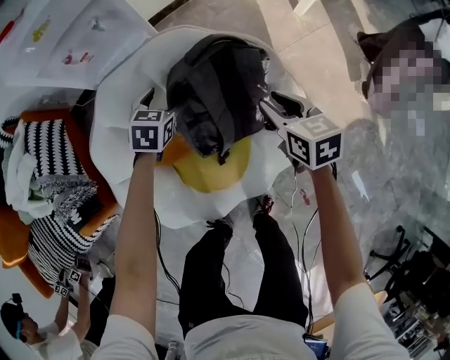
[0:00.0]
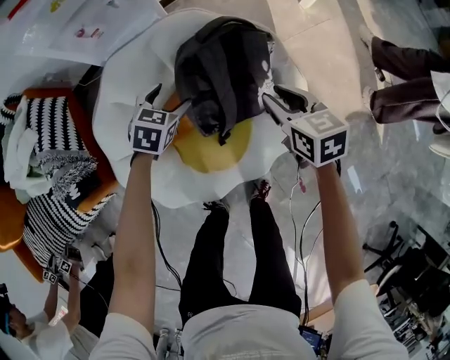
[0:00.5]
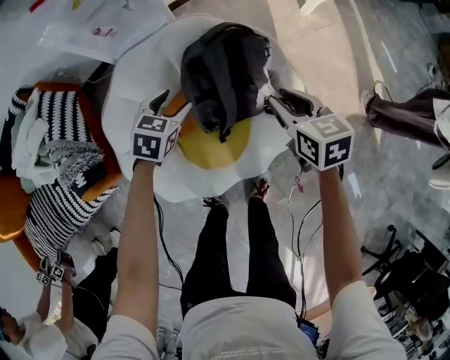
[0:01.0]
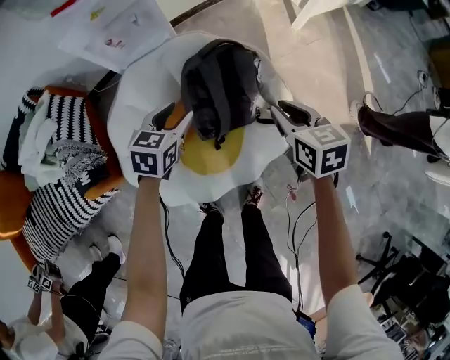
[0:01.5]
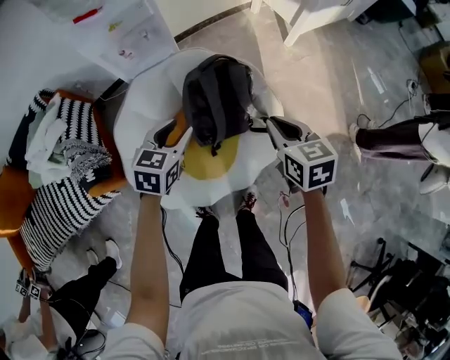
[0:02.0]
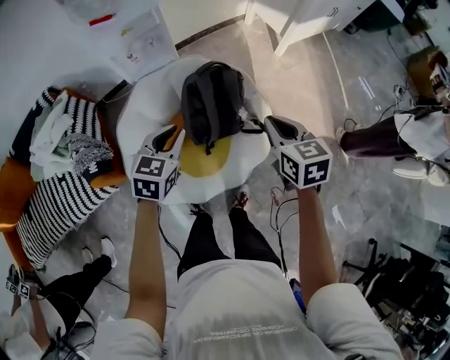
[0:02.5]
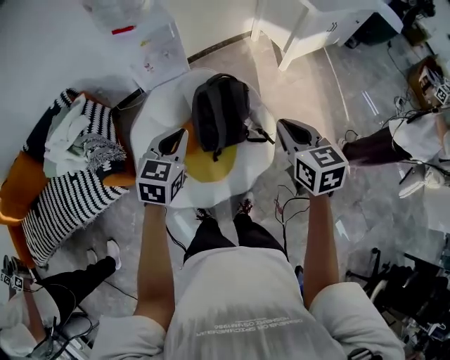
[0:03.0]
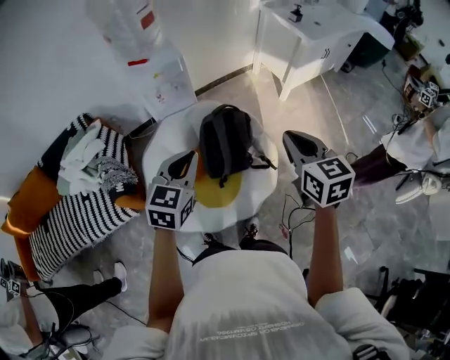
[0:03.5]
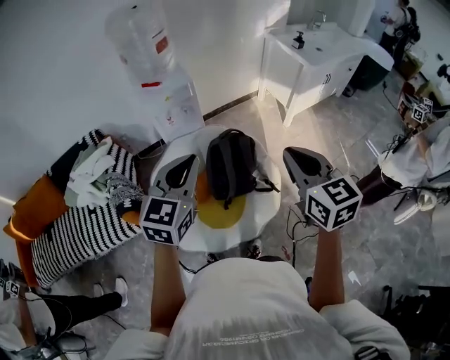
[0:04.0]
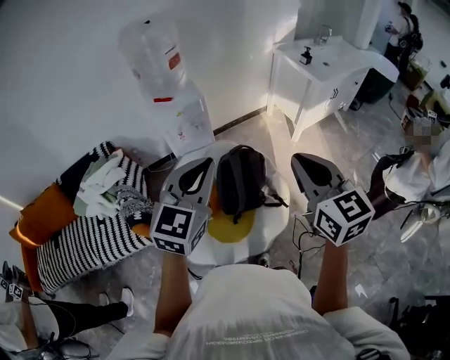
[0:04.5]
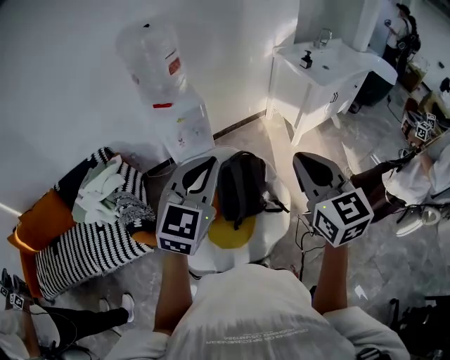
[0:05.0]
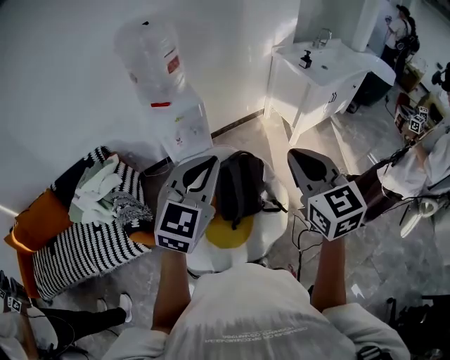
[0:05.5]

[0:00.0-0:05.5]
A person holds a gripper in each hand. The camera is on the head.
0.0 to 2.0 s: The grippers both shift upward and backward by about 30 cm. The right gripper closes. Meanwhile the left gripper closes up.
2.0 to 3.5 s: The left gripper goes roughly 25 cm upward and backward, and closes its fingers; the right gripper goes roughly 25 cm upward.
3.5 to 5.5 s: The left gripper moves upward, approximately 15 cm, and swivels roughly 20 degrees. The right gripper goes about 15 cm upward and to the left.

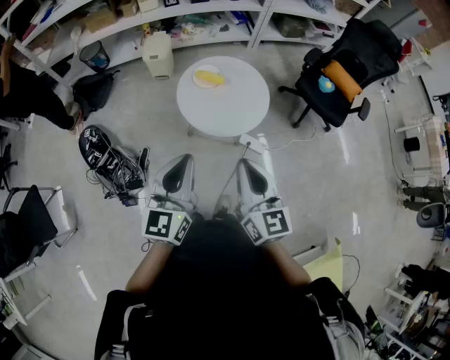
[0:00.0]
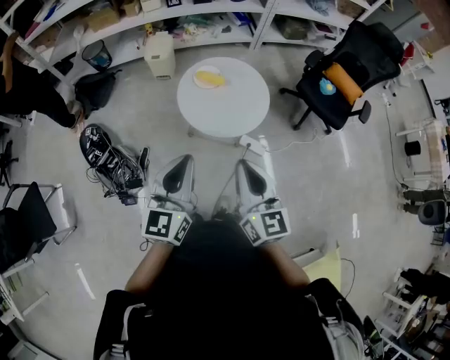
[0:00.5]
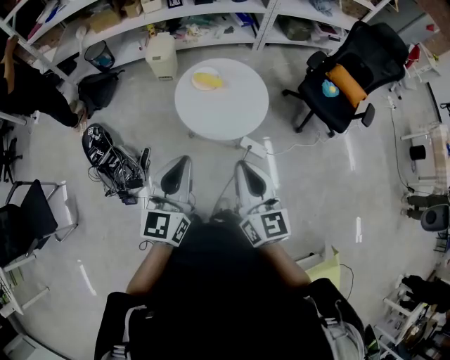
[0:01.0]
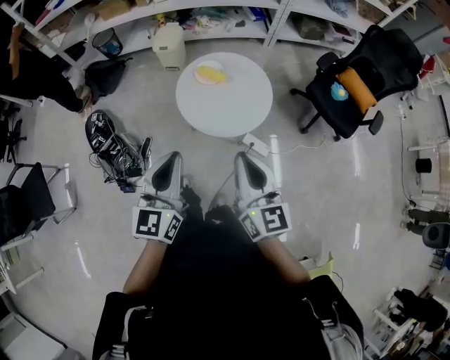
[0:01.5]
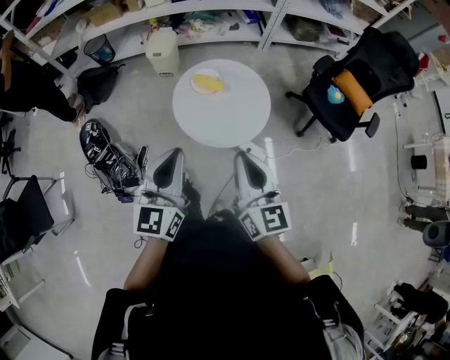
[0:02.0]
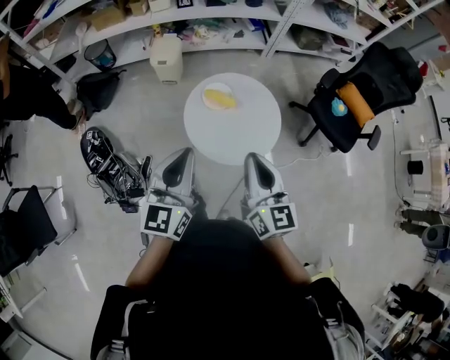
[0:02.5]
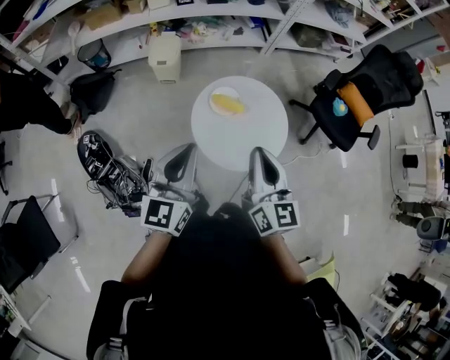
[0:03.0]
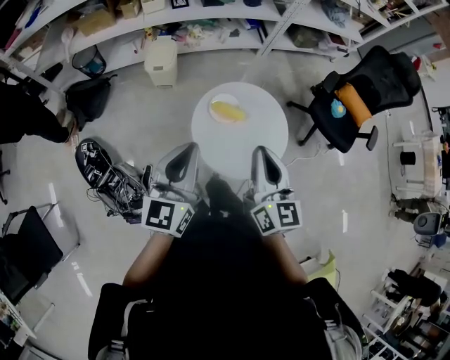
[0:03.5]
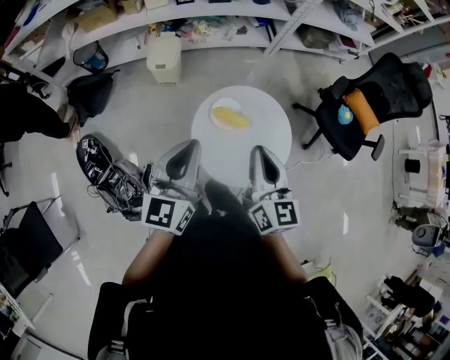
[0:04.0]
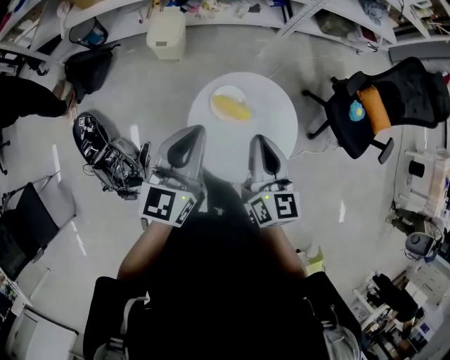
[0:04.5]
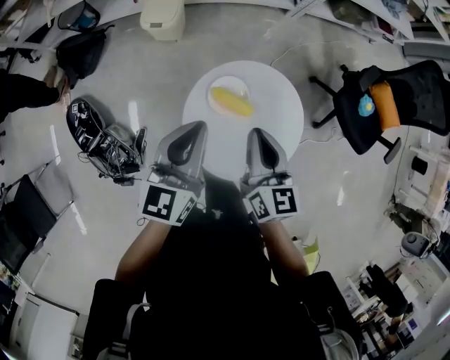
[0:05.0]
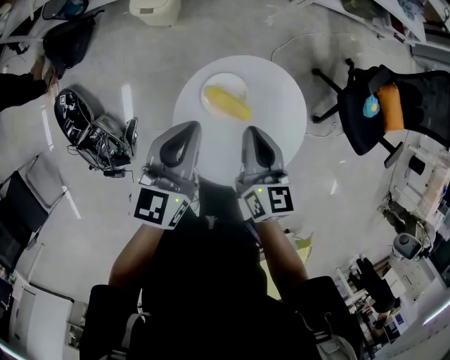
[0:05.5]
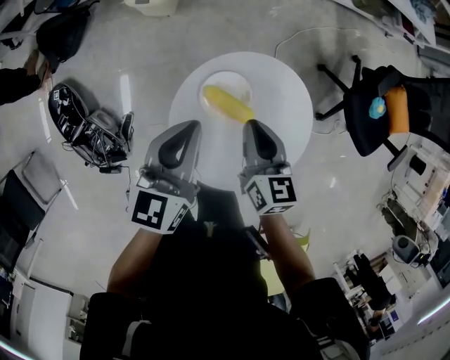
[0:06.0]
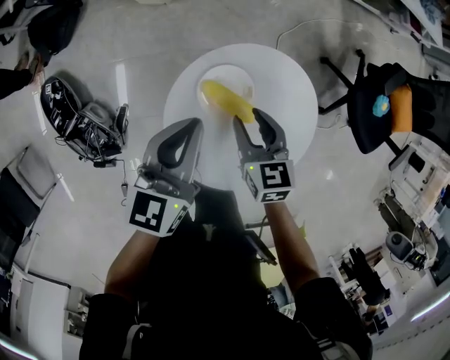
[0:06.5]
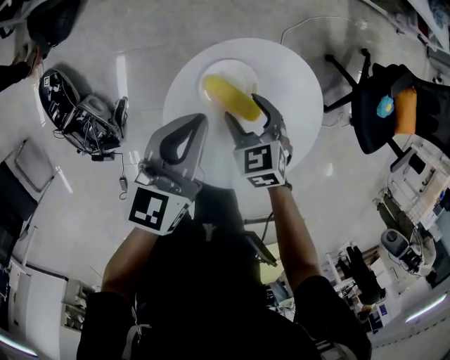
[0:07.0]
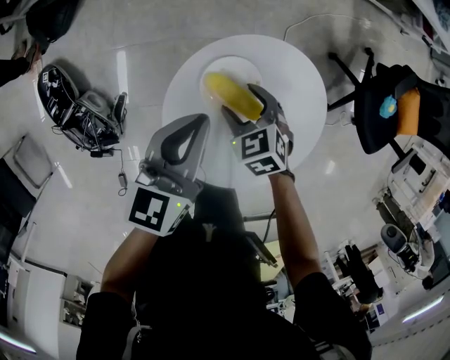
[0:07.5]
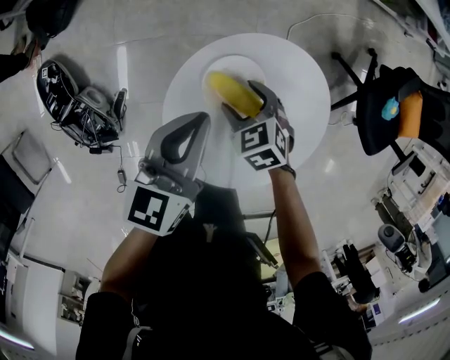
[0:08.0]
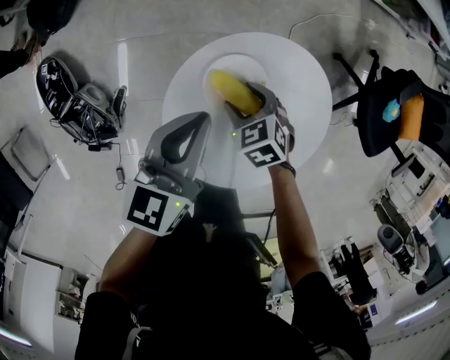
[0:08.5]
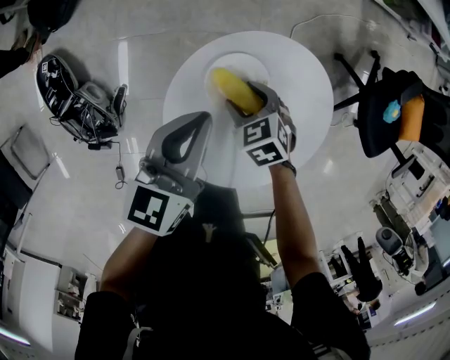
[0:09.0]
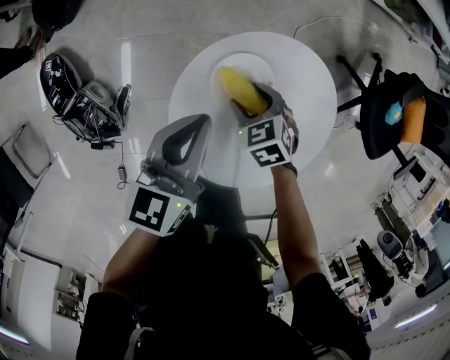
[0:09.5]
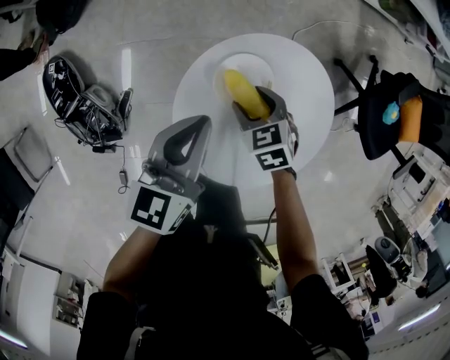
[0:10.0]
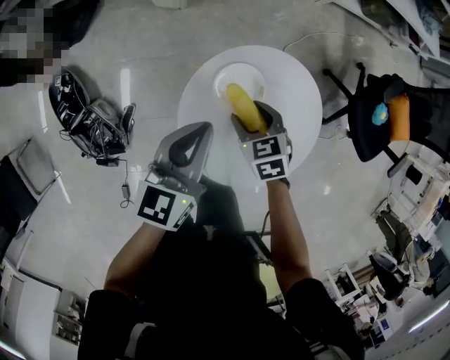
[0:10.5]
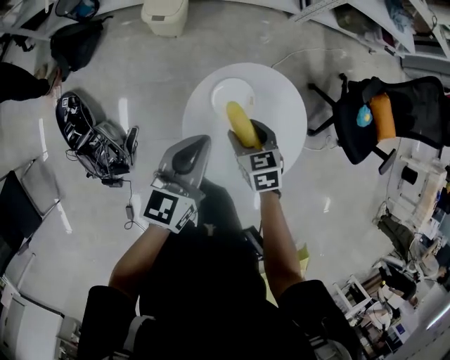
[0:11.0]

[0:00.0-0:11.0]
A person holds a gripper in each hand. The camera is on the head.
0.0 to 2.0 s: The two grippers go roughly 10 cm forward.
2.0 to 3.5 s: Both grippers travel together forward and to the left, approximately 20 cm.
3.5 to 5.5 s: The left gripper moves forward and downward, approximately 25 cm, while the right gripper goes roughly 30 cm downward and forward, and rotates approximately 20 degrees.
5.5 to 7.5 s: The left gripper goes roughly 10 cm downward; the right gripper moves downward, roughly 20 cm, points its fingers roughly 30 degrees further downward, and opens.
7.5 to 9.0 s: The grippers move only a little.
9.0 to 11.0 s: The left gripper shifts about 15 cm upward and backward, while the right gripper is displaced upward by some 15 cm, and swivels some 20 degrees.

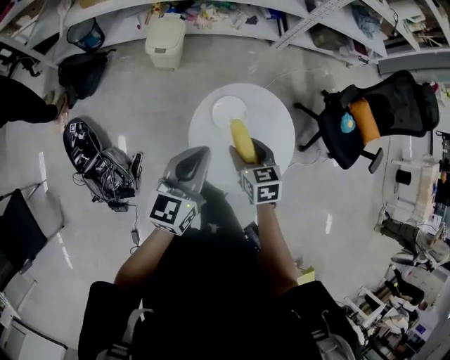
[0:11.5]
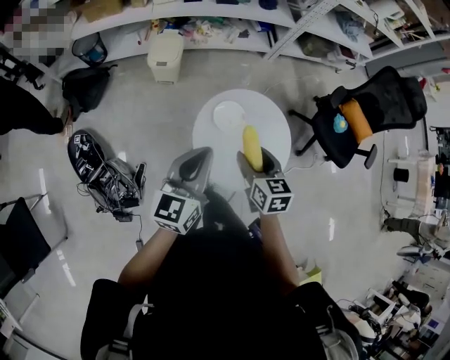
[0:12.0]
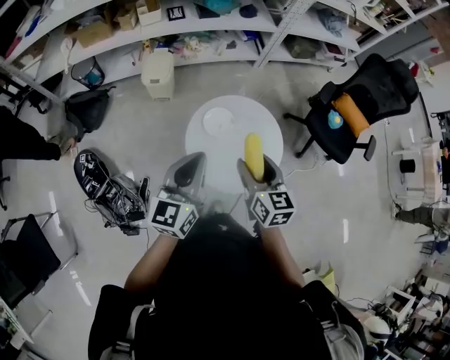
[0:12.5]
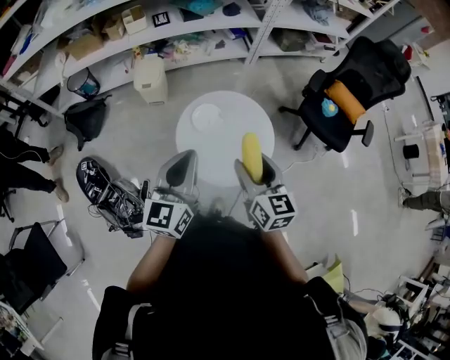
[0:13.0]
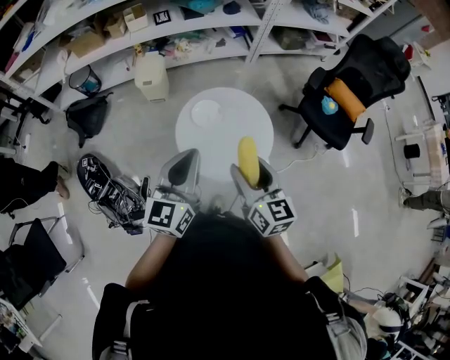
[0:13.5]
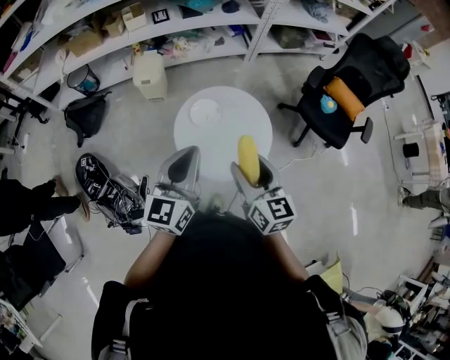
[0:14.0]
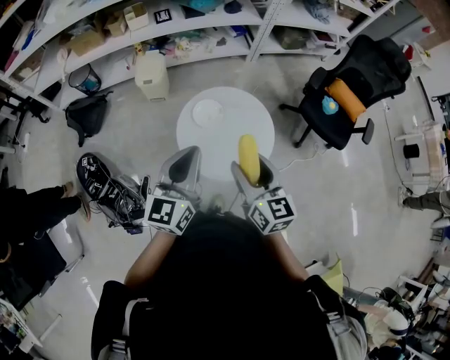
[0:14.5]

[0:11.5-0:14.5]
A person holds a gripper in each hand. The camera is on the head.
11.5 to 13.0 s: The right gripper shifts approximately 25 cm upward, backward and to the right, and changes its angle by approximately 30 degrees. The left gripper shifts some 15 cm upward, backward and to the right.
13.0 to 14.5 s: The grippers stay close to where they were, moving slightly.

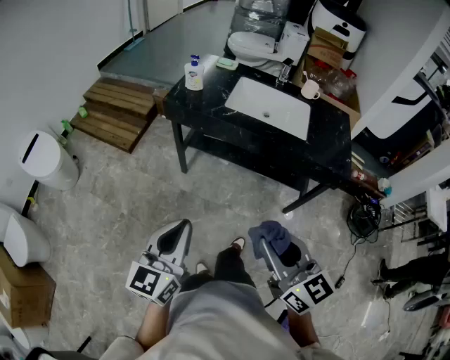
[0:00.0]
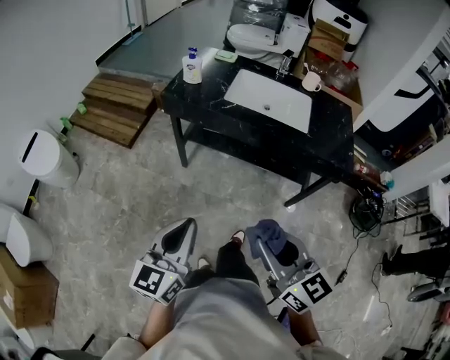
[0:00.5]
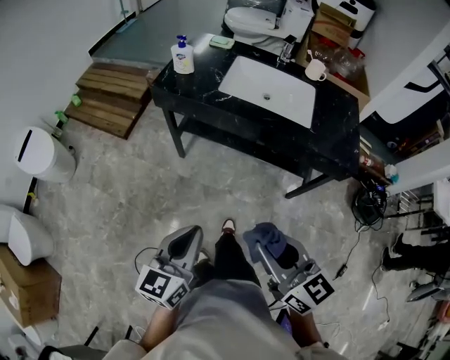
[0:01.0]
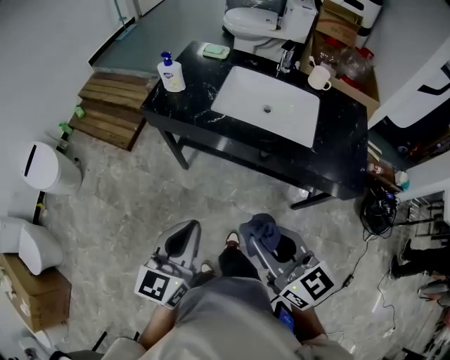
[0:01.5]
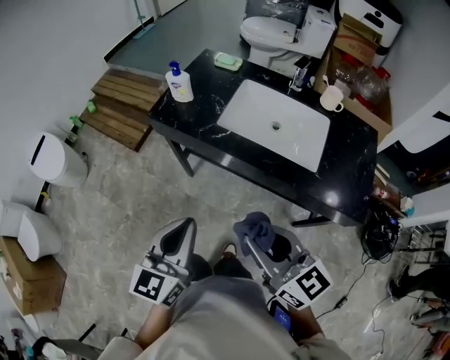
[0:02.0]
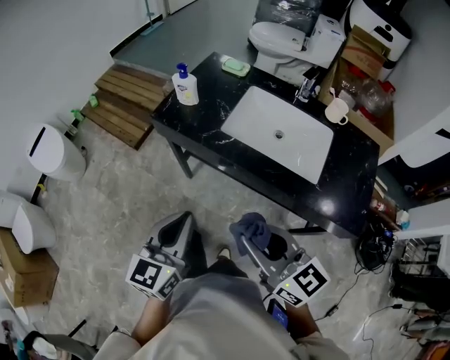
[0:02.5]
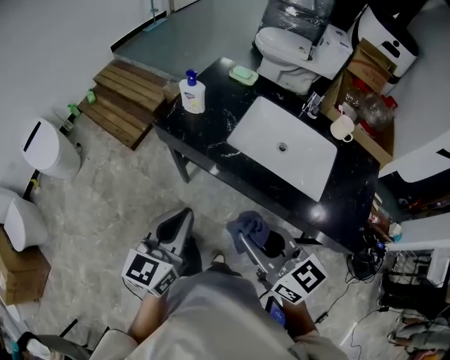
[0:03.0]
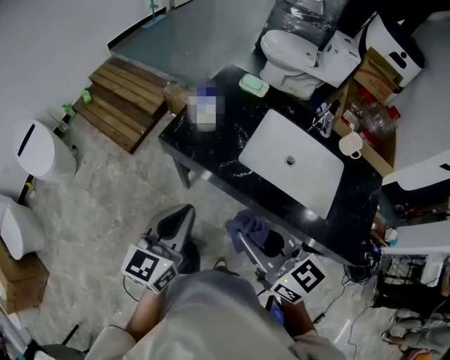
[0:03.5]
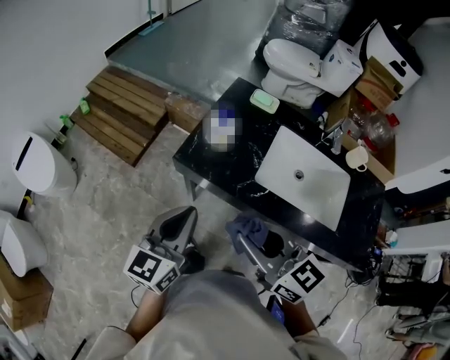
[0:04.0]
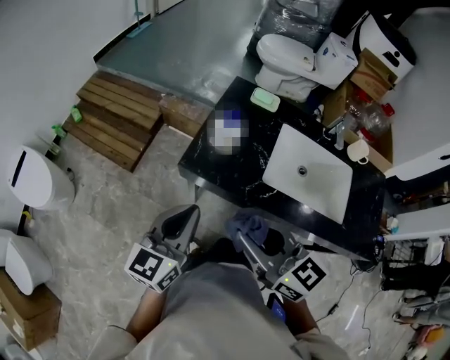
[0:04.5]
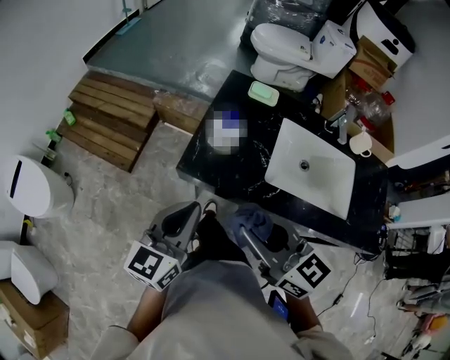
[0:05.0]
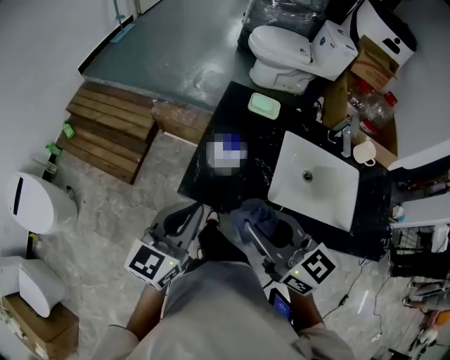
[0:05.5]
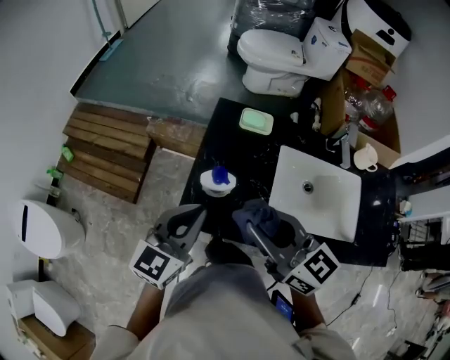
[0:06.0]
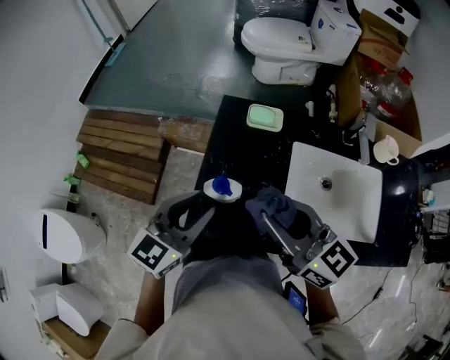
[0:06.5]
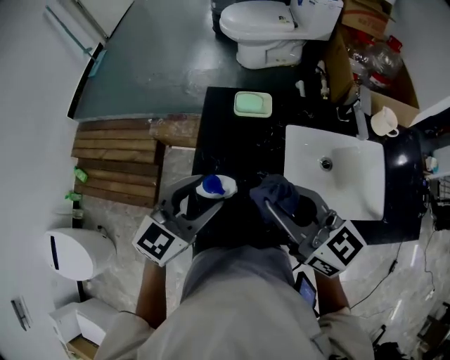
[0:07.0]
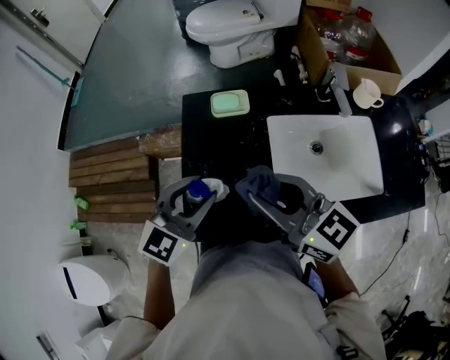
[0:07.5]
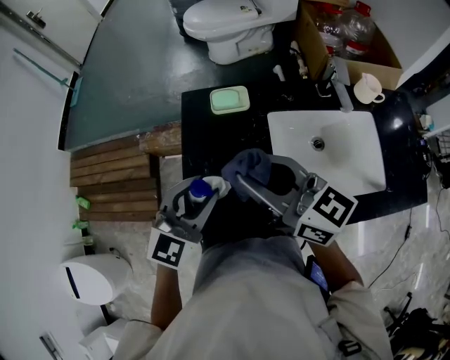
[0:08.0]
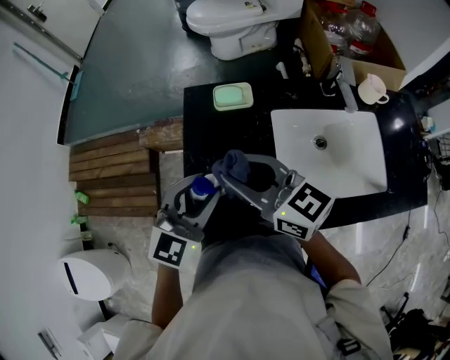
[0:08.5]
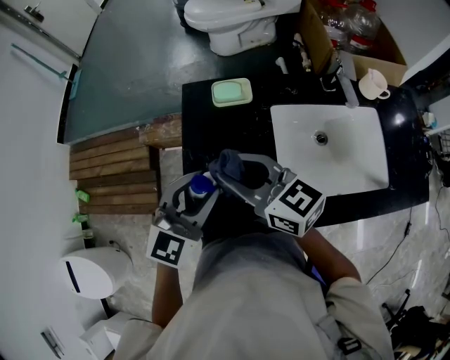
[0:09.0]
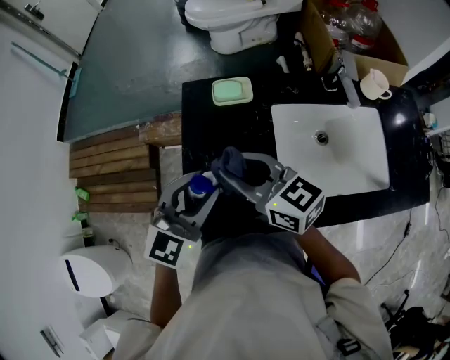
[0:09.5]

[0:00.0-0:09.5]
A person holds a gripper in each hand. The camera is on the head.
0.0 to 2.0 s: The right gripper goes roughly 20 cm forward. The left gripper shifts roughly 25 cm forward and to the right.
2.0 to 4.0 s: The two grippers go about 25 cm forward and to the left.
4.0 to 5.5 s: Both grippers travel together forward, roughly 15 cm.
5.5 to 7.5 s: The right gripper travels forward by roughly 15 cm; the left gripper heads forward and to the right, covering some 20 cm, swivels about 40 degrees, and opens up.
7.5 to 9.5 s: The right gripper shifts about 10 cm downward and to the left.
